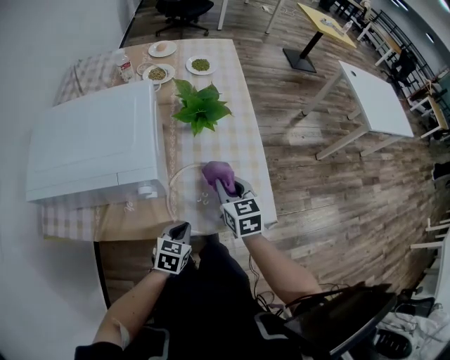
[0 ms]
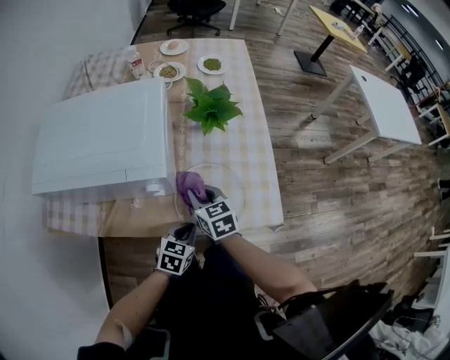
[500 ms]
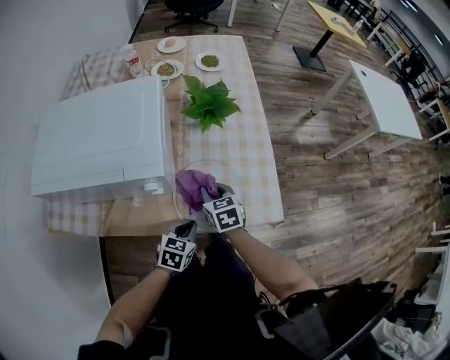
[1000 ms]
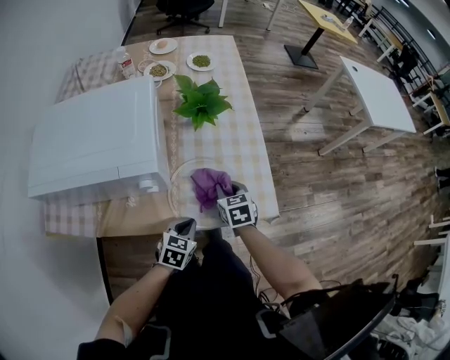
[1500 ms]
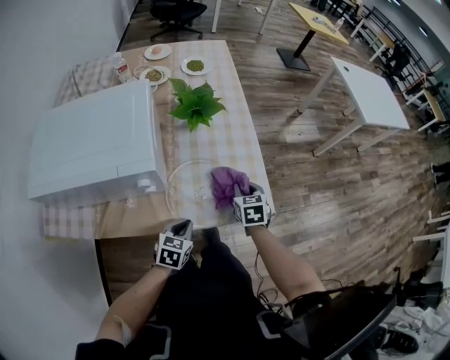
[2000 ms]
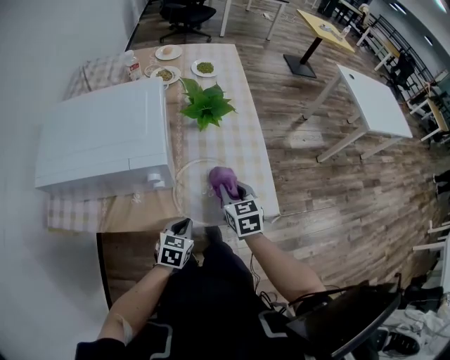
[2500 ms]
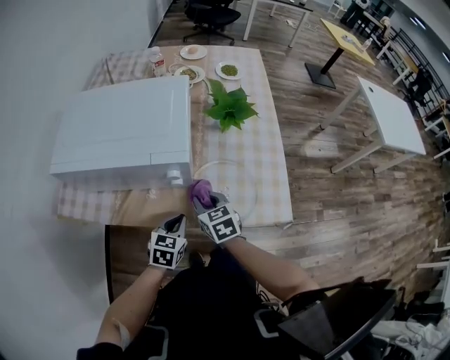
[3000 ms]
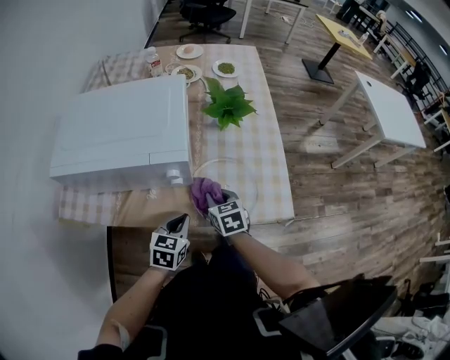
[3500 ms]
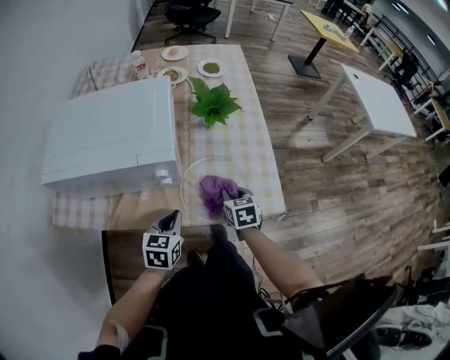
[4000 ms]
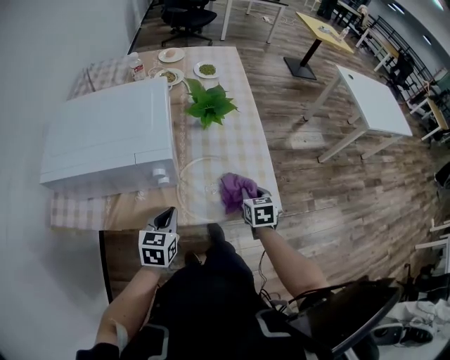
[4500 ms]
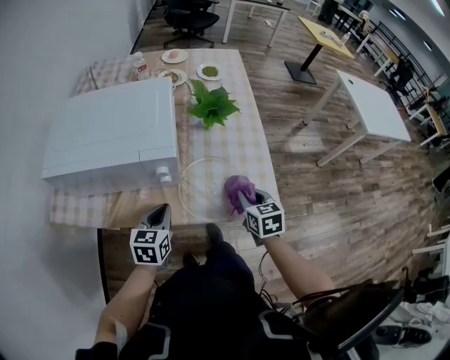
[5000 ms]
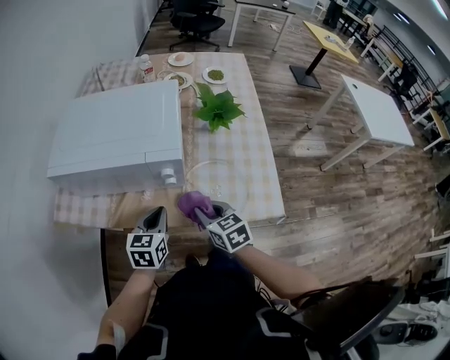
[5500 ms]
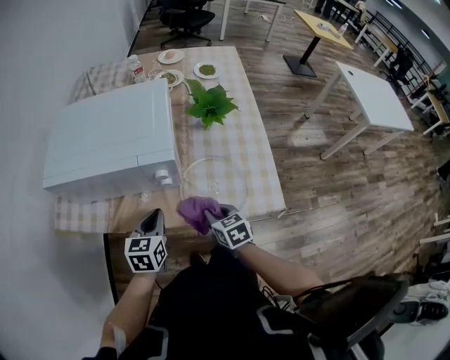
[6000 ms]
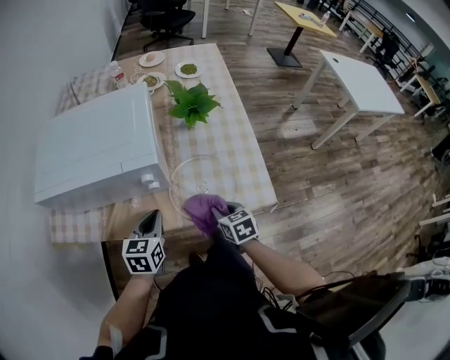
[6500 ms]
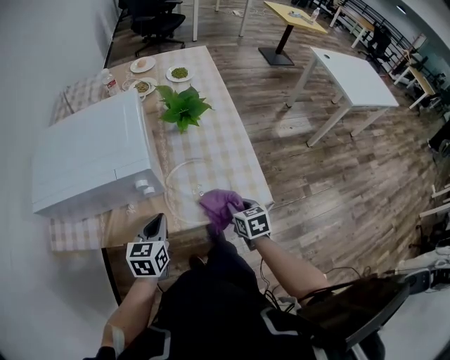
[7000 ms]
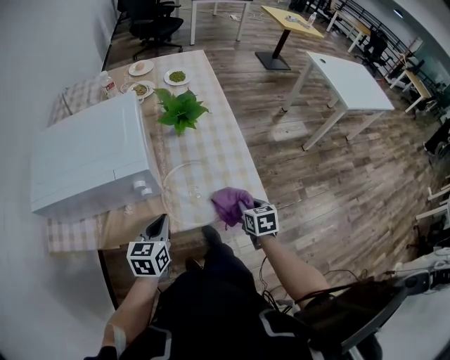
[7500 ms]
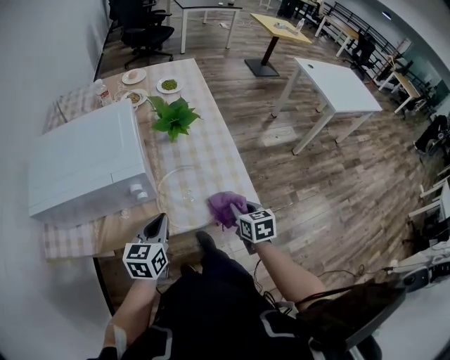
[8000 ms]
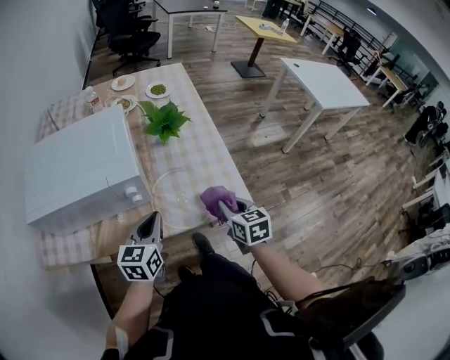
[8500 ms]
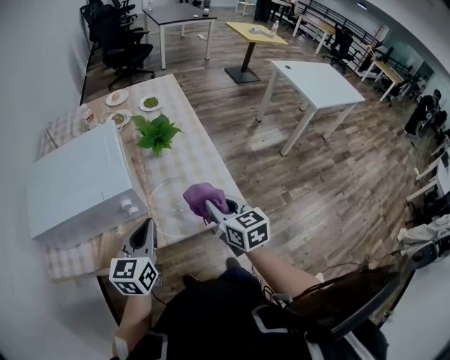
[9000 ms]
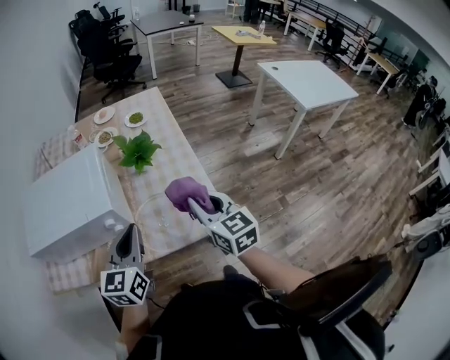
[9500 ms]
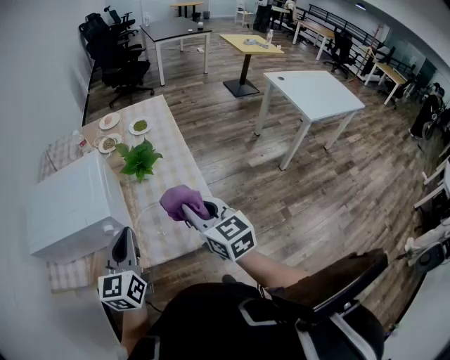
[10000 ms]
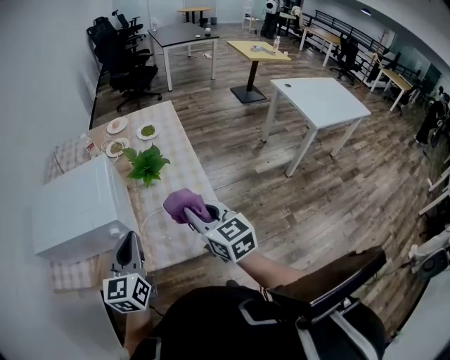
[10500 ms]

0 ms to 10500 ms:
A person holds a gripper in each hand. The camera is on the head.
0 ms to 2000 ms: The right gripper goes some 10 cm to the right and downward.
2000 ms to 4000 ms: The left gripper is displaced to the left and upward by some 10 cm. The right gripper moves to the left, some 10 cm.
4000 ms to 6500 ms: The right gripper goes left and right, roughly 20 cm each way, reversing 2 times.
6500 ms to 8500 ms: The right gripper goes about 15 cm upward and to the right; the left gripper is displaced upward and to the right by roughly 10 cm.
8500 ms to 10500 ms: The two grippers go some 15 cm upward. The right gripper swivels some 30 degrees.

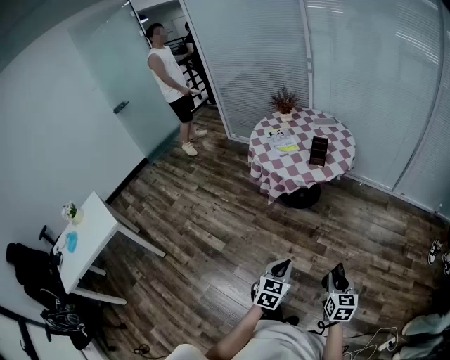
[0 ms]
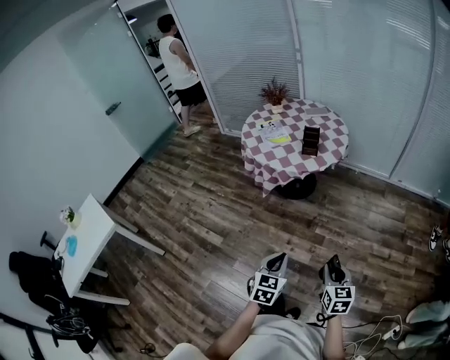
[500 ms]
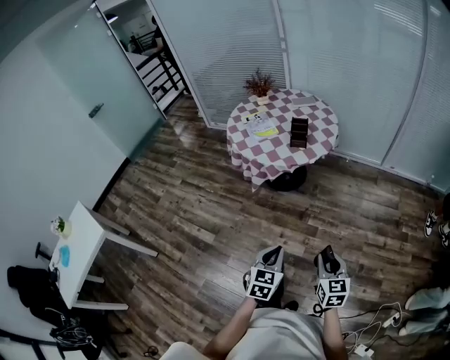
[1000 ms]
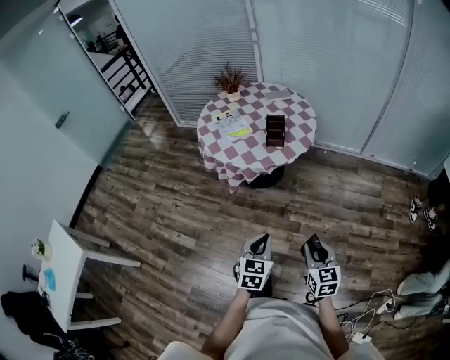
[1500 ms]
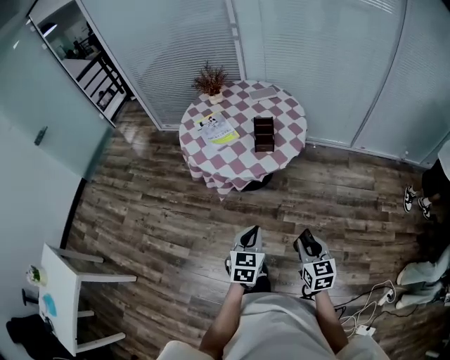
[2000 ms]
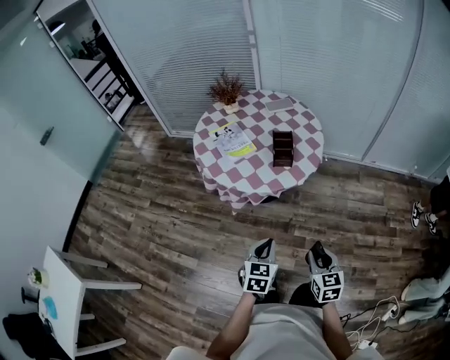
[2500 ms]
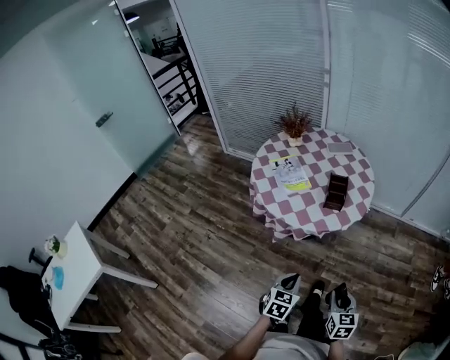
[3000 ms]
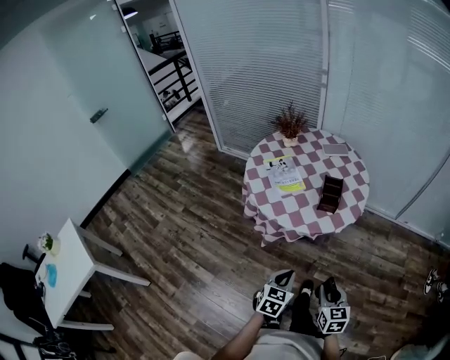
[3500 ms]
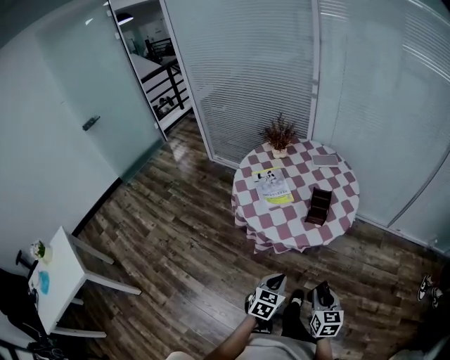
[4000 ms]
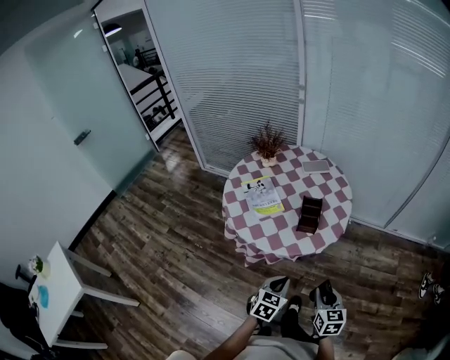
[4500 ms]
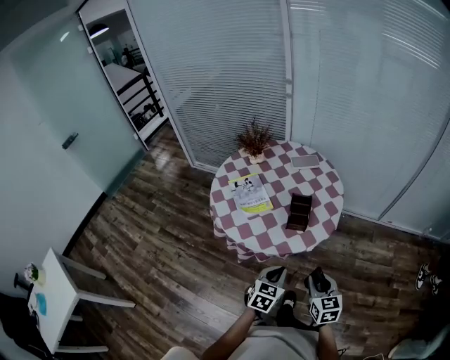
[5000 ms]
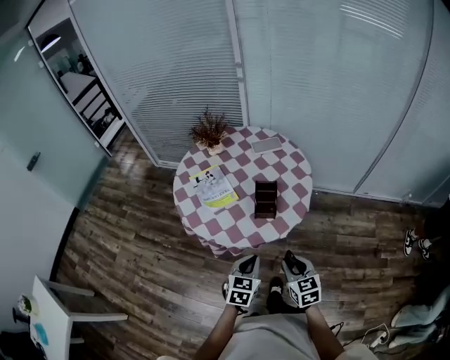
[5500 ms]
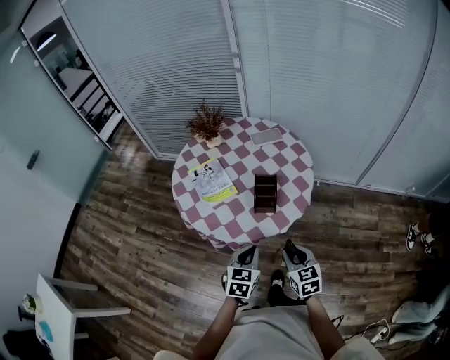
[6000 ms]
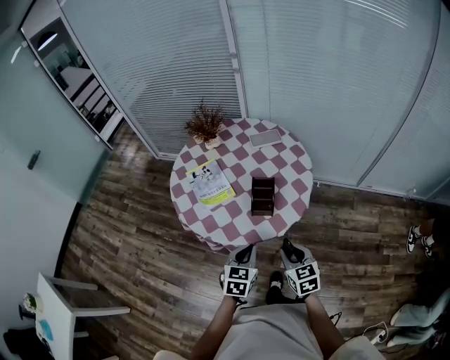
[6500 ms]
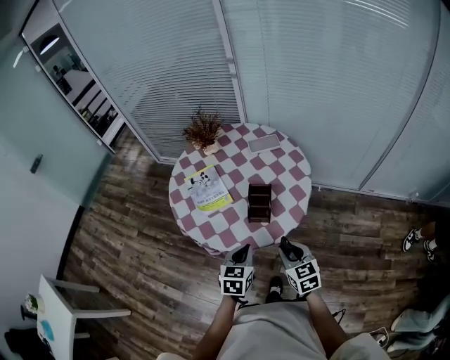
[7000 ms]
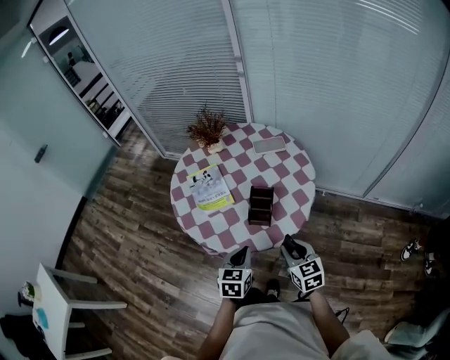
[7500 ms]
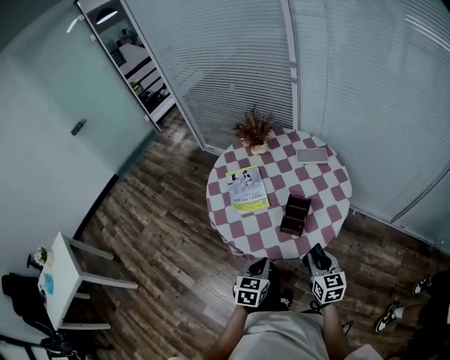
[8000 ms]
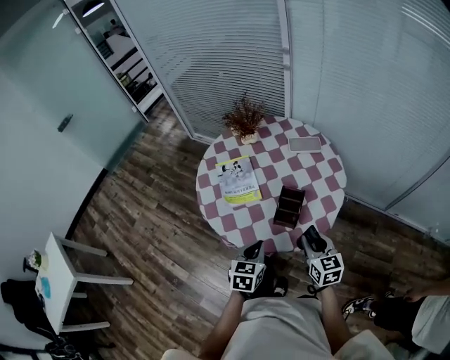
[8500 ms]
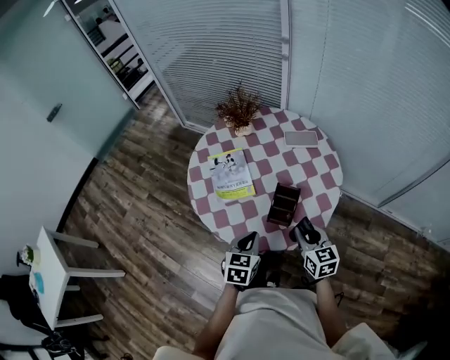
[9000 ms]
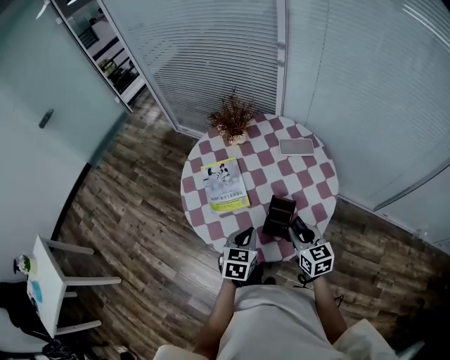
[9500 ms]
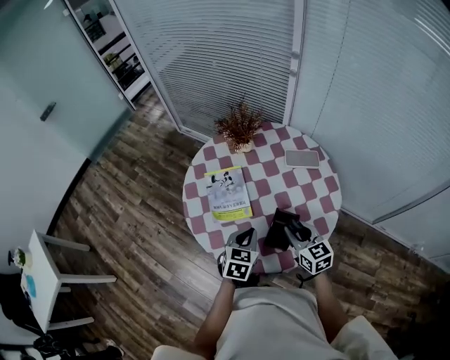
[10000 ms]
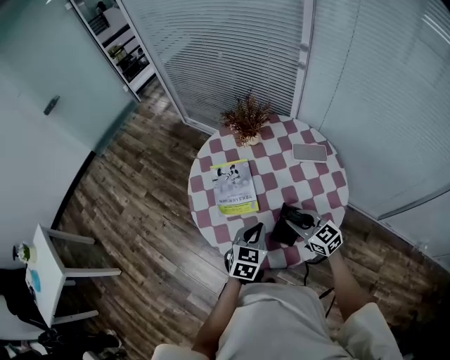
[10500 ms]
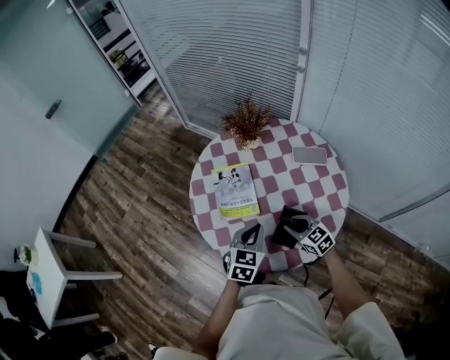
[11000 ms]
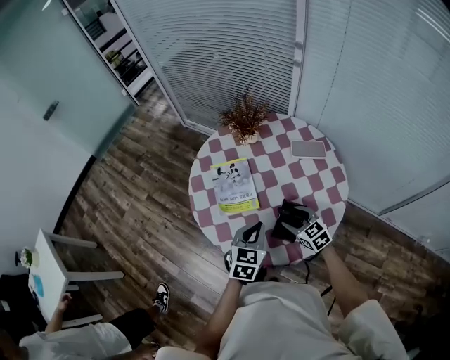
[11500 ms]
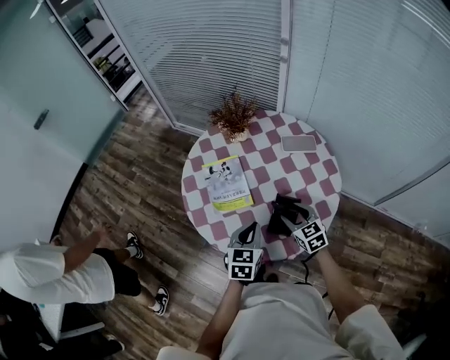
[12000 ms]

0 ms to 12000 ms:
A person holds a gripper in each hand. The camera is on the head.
0 ms to 2000 ms: The grippers both shift forward by some 20 cm.
2000 ms to 4000 ms: The left gripper shifts approximately 10 cm forward. Meanwhile the right gripper moves forward and to the left, about 15 cm.
4000 ms to 6000 ms: The grippers both shift forward by about 15 cm.
6000 ms to 8000 ms: The right gripper moves forward, roughly 10 cm.
8000 ms to 10000 ms: The grippers both shift forward by roughly 20 cm.
10000 ms to 12000 ms: The right gripper moves downward, about 5 cm, and opens its fingers.

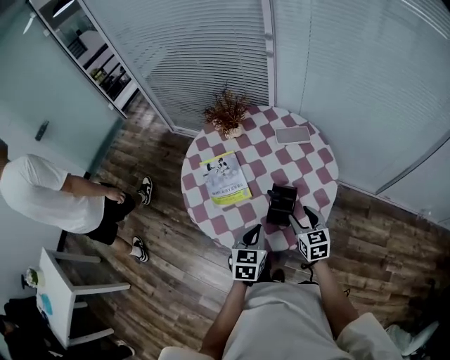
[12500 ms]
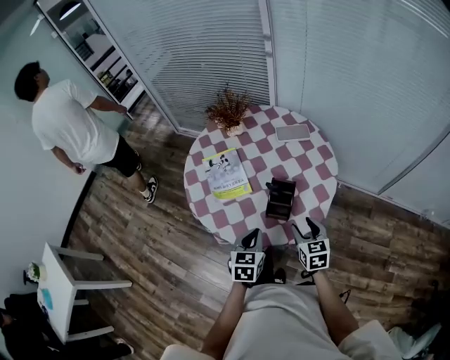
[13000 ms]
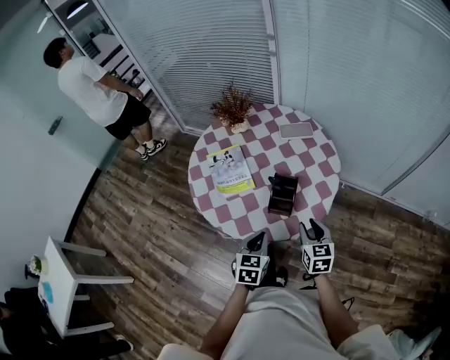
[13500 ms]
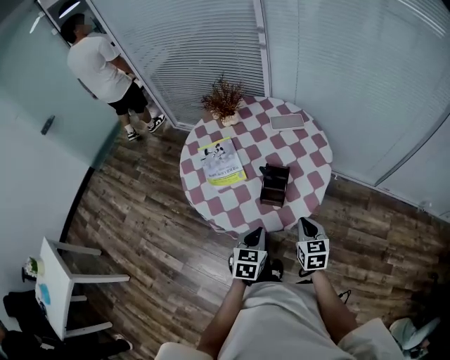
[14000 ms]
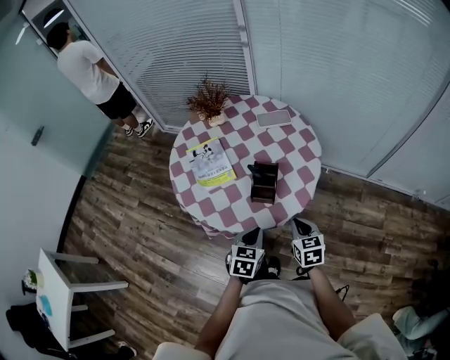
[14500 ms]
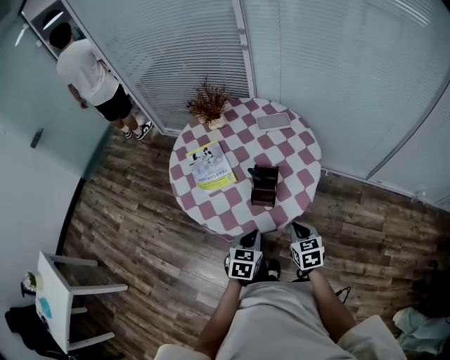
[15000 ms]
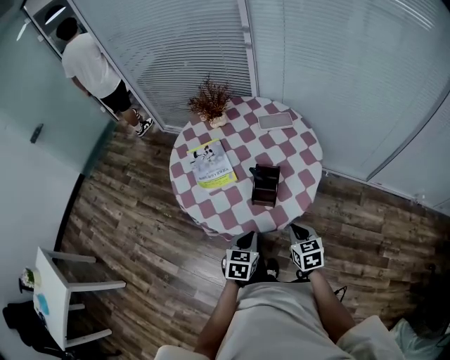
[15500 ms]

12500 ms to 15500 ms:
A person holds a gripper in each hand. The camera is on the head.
12500 ms to 14000 ms: The two grippers go about 10 cm backward. The right gripper closes up.
14000 ms to 15500 ms: There are only small adjustments of the grippers.

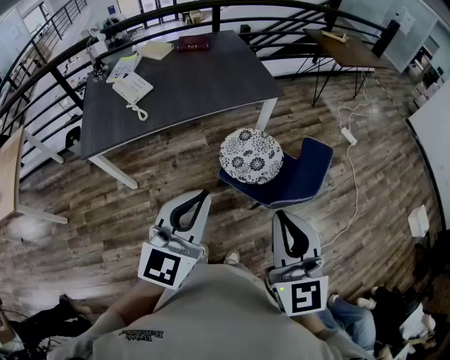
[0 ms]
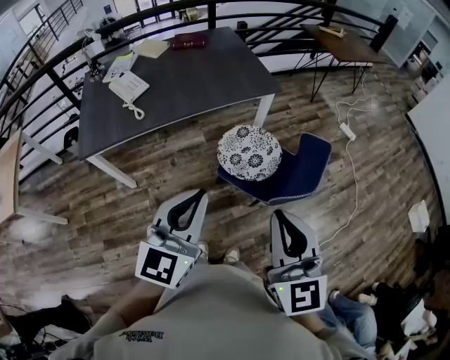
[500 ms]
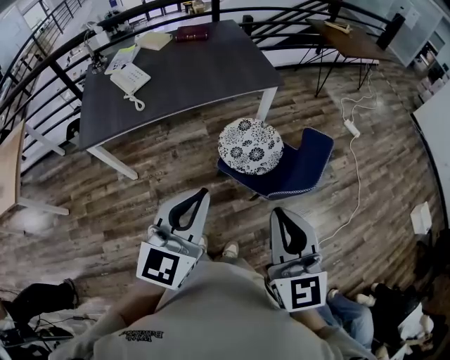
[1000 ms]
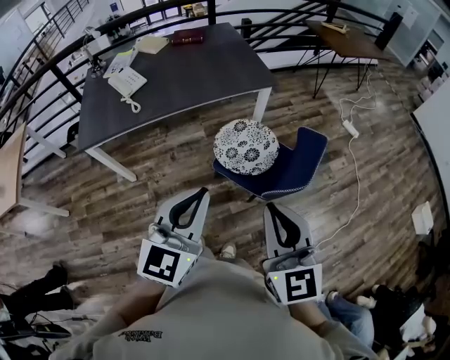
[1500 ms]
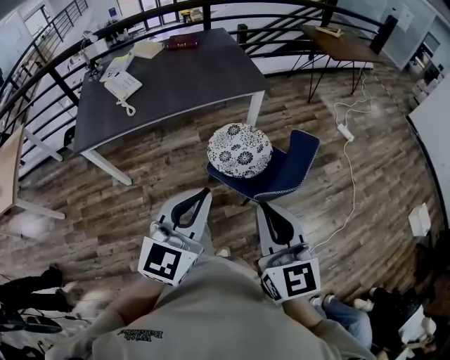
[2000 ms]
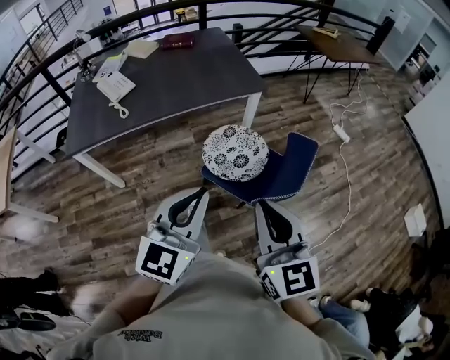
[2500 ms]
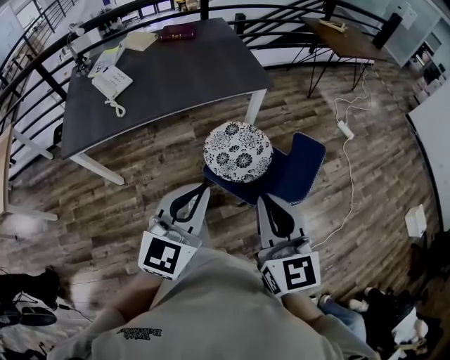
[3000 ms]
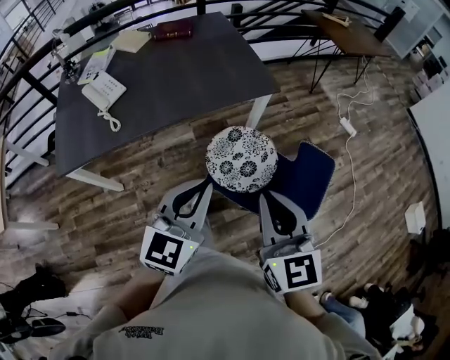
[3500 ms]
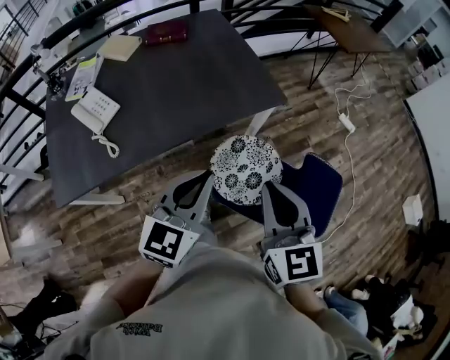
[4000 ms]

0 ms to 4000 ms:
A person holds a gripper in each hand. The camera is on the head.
0 ms to 2000 ms: The two grippers go about 10 cm to the right.
2000 ms to 4000 ms: The grippers both shift forward by approximately 35 cm.
